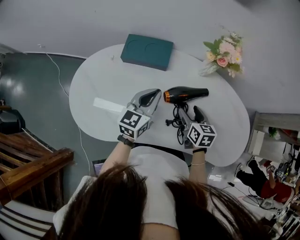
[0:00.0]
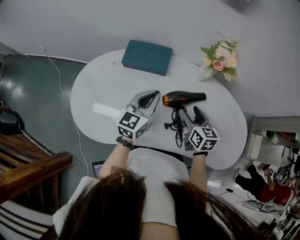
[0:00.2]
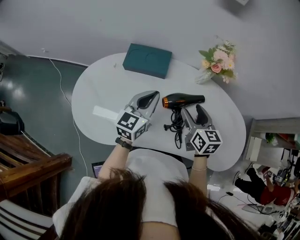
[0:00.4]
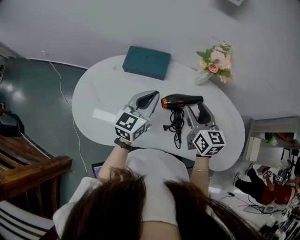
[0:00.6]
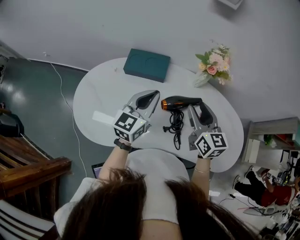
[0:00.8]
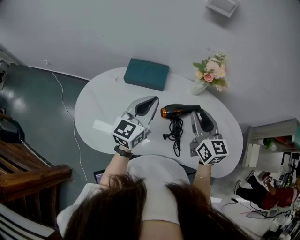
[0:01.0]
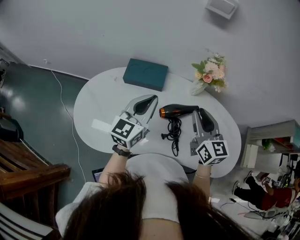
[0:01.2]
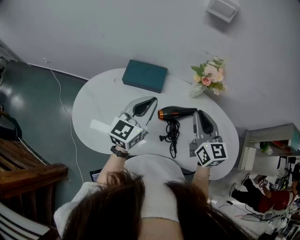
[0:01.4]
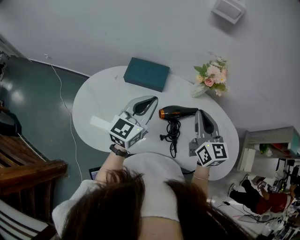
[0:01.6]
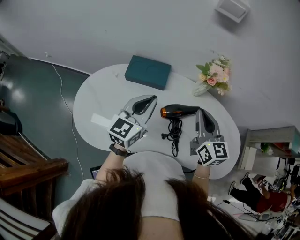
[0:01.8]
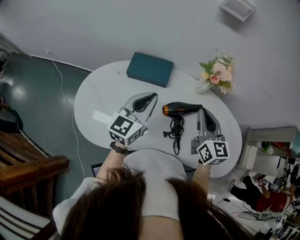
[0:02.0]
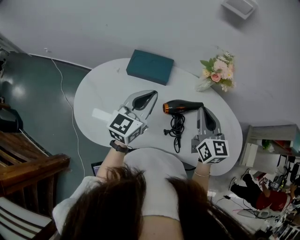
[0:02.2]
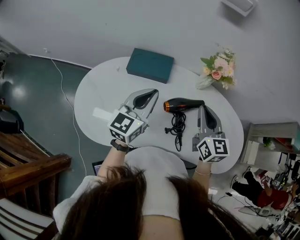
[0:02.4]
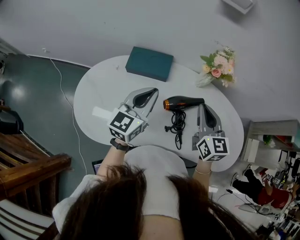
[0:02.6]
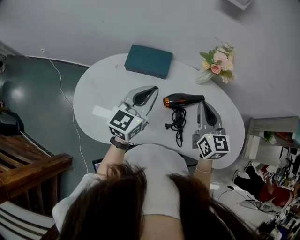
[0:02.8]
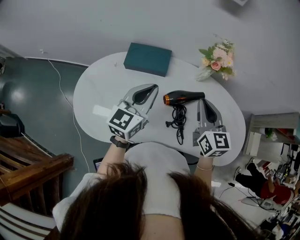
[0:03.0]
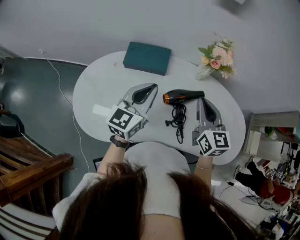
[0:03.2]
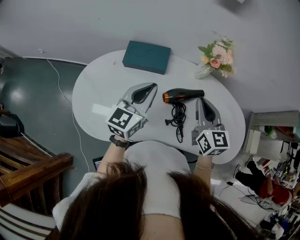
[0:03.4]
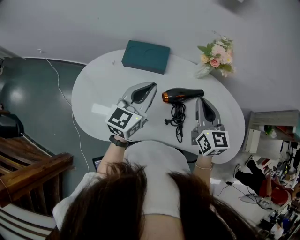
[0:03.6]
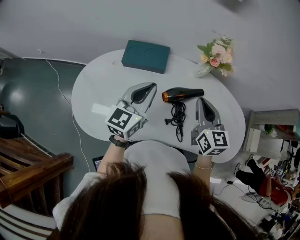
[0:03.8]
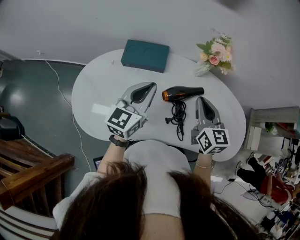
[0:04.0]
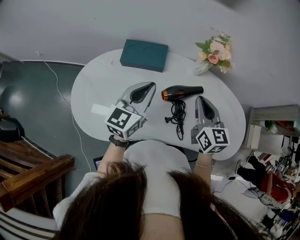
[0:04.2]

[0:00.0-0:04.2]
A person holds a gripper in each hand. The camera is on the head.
0:00.0 to 0:01.4: The right gripper moves upward, some 20 cm, rotates about 30 degrees, and closes. The left gripper travels upward by roughly 15 cm.
0:01.4 to 0:04.2: There are only small adjustments of the grippers.

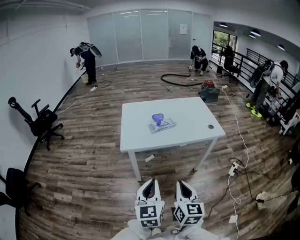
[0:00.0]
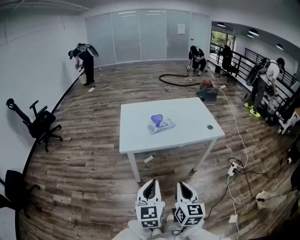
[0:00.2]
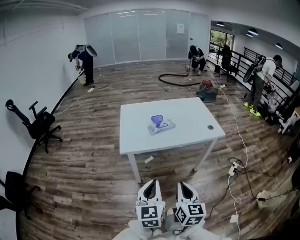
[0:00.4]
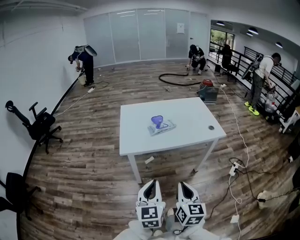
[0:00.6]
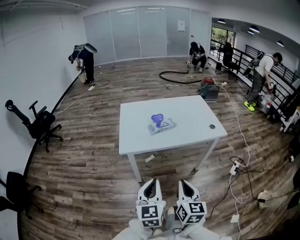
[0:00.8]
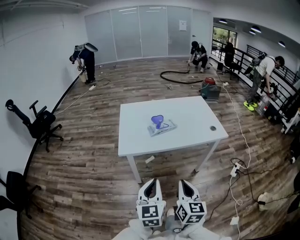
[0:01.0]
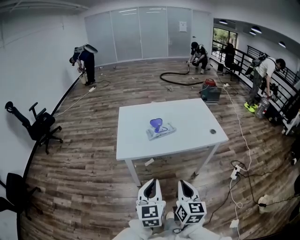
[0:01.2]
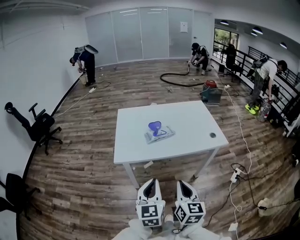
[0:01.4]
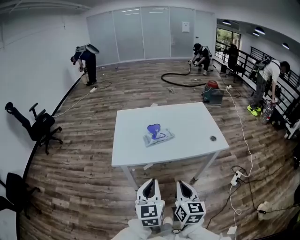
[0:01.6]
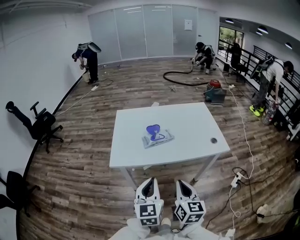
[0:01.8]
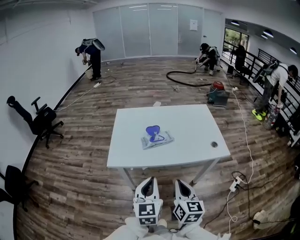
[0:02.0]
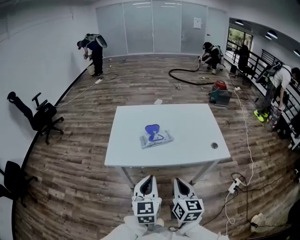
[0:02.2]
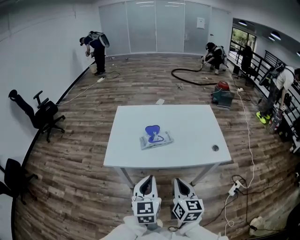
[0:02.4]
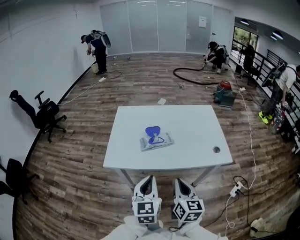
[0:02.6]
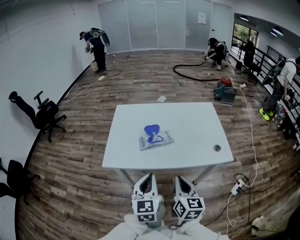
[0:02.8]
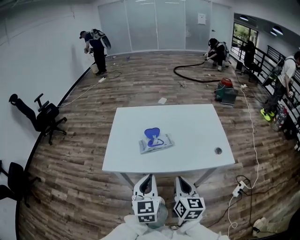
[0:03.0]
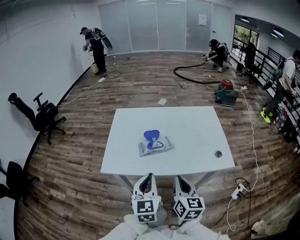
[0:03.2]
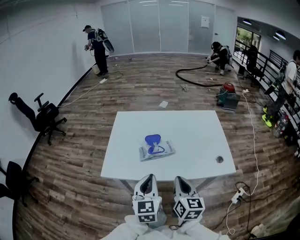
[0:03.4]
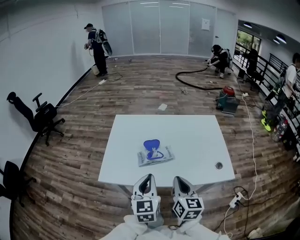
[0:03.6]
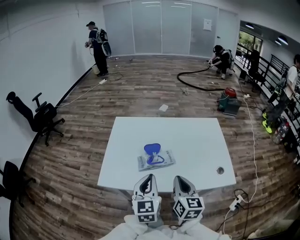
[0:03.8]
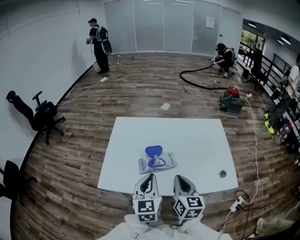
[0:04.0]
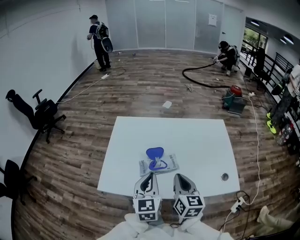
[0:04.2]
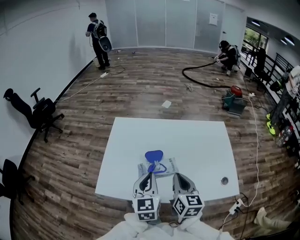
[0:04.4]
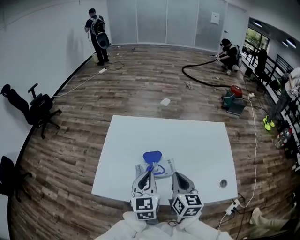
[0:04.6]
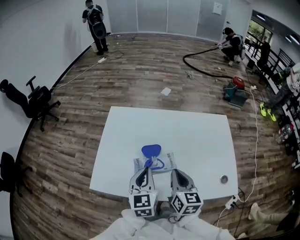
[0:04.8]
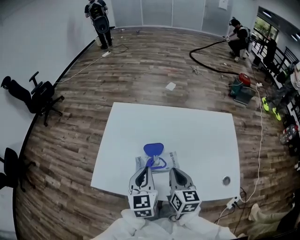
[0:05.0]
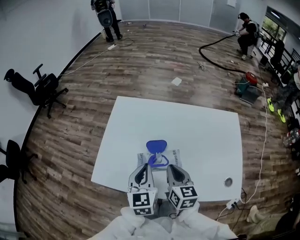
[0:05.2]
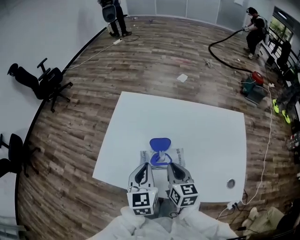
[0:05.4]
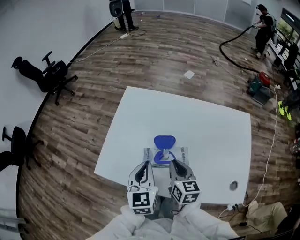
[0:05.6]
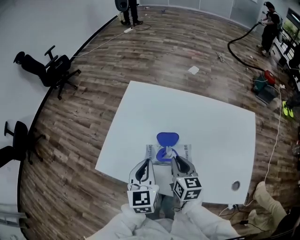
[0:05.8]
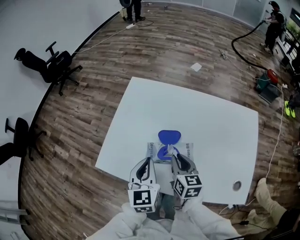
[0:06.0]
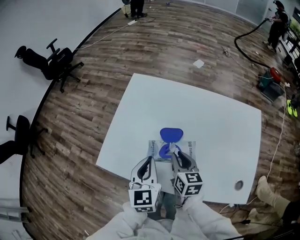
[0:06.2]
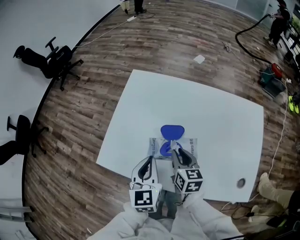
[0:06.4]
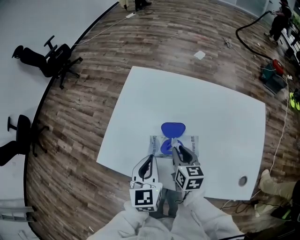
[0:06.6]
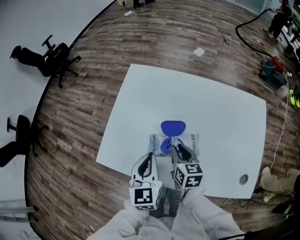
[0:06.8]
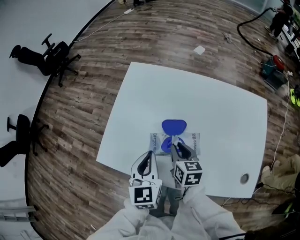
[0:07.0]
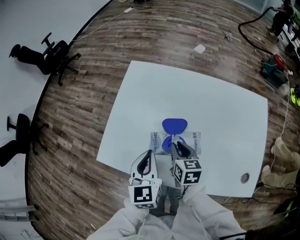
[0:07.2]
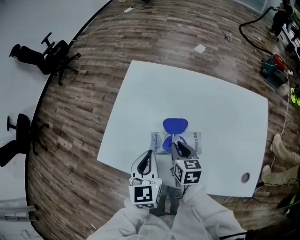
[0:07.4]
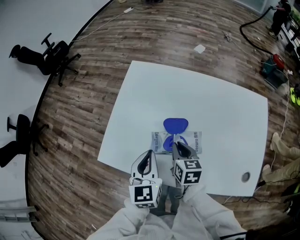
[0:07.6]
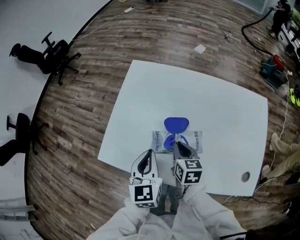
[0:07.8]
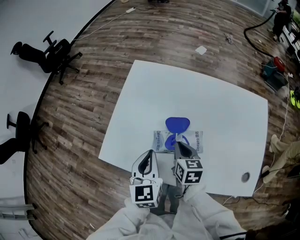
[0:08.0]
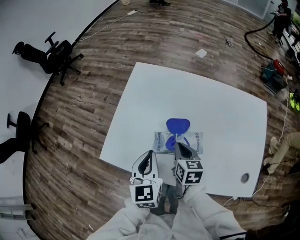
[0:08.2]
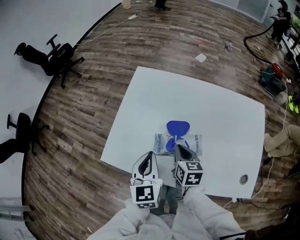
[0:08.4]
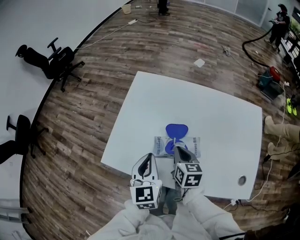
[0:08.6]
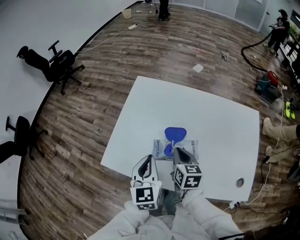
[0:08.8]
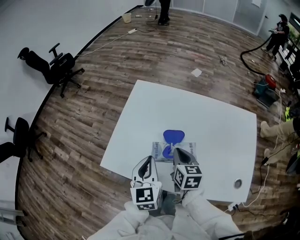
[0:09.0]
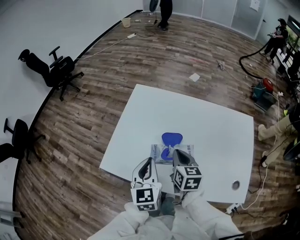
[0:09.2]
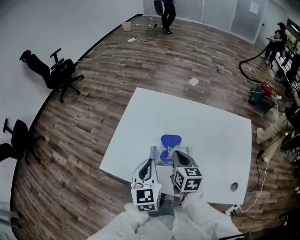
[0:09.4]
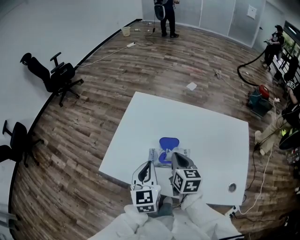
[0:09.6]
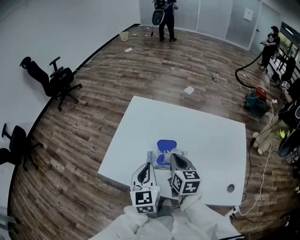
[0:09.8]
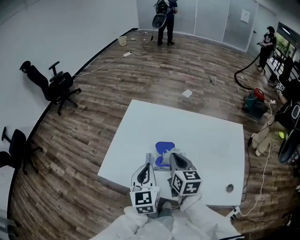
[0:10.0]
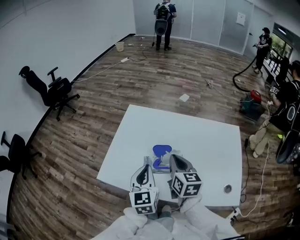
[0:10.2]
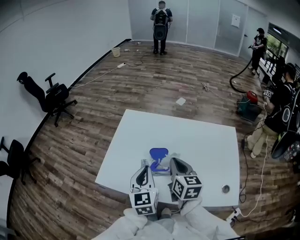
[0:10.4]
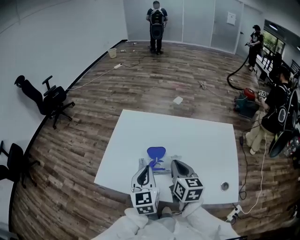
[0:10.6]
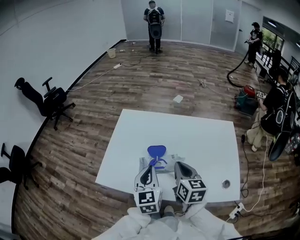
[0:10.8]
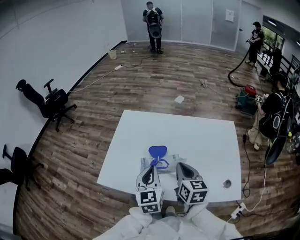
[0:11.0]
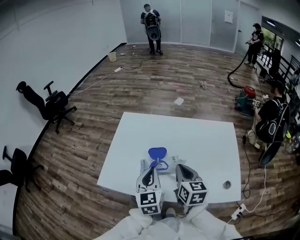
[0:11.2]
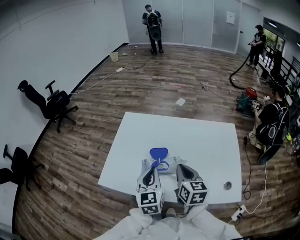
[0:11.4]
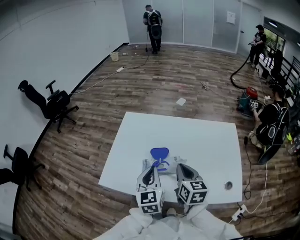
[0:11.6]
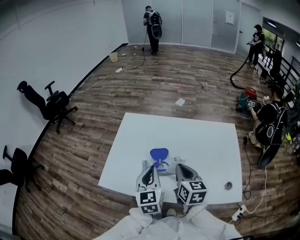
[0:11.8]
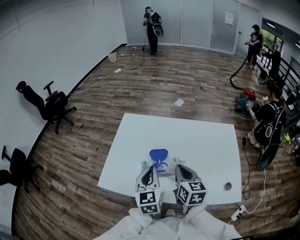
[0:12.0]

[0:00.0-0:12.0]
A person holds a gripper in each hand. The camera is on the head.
0:00.0 to 0:01.6: Both grippers travel together forward, roughly 15 cm.
0:01.6 to 0:03.0: Both grippers travel together forward and to the right, approximately 15 cm.
0:03.0 to 0:04.4: Both grippers move forward, approximately 20 cm.
0:04.4 to 0:06.0: The left gripper goes roughly 5 cm downward; the right gripper moves downward and forward, approximately 15 cm, and turns by approximately 20 degrees.
0:06.0 to 0:07.6: The right gripper ends up about 5 cm from where it was.
0:07.6 to 0:09.0: The right gripper travels upward by some 5 cm.
0:09.0 to 0:10.4: The left gripper shifts by roughly 5 cm. The right gripper goes about 10 cm upward.
0:10.4 to 0:12.0: The grippers stay close to where they were, moving slightly.

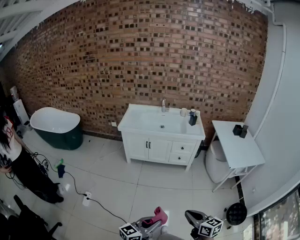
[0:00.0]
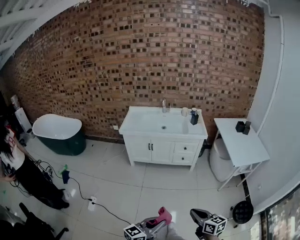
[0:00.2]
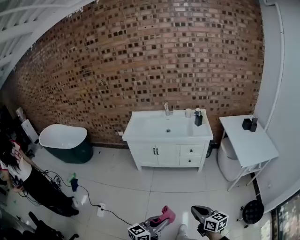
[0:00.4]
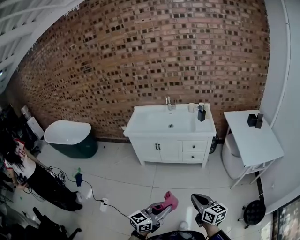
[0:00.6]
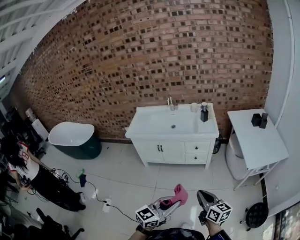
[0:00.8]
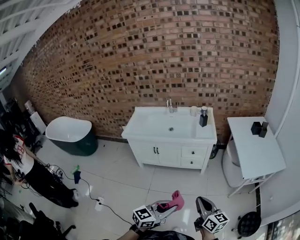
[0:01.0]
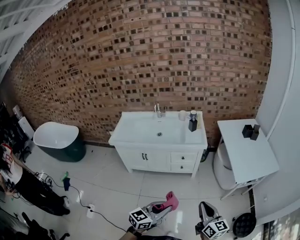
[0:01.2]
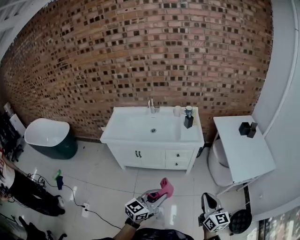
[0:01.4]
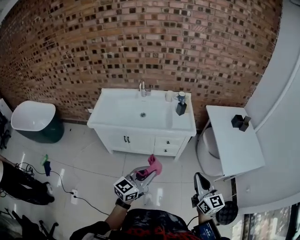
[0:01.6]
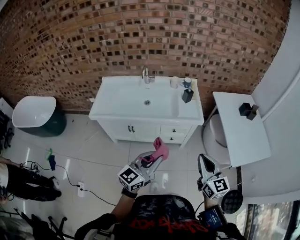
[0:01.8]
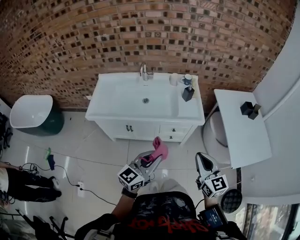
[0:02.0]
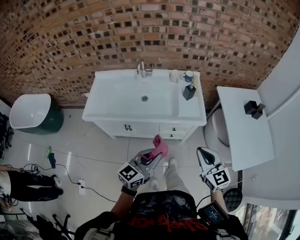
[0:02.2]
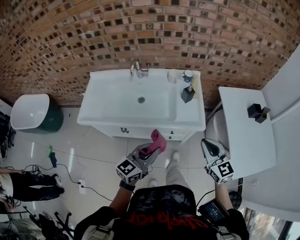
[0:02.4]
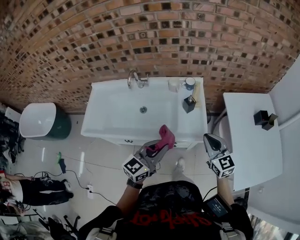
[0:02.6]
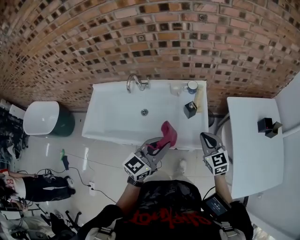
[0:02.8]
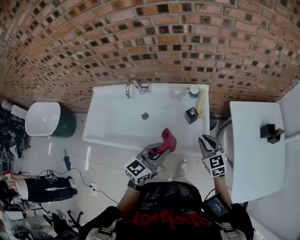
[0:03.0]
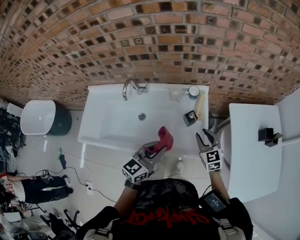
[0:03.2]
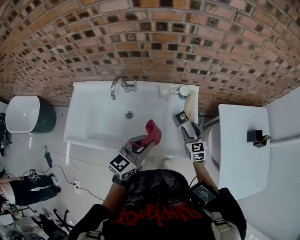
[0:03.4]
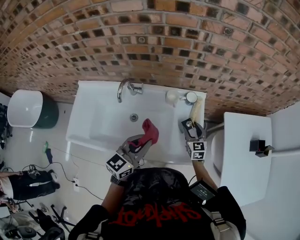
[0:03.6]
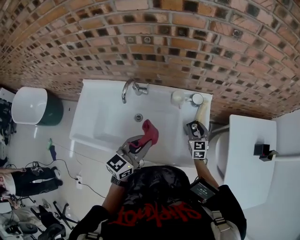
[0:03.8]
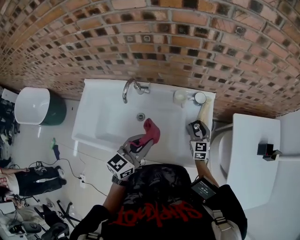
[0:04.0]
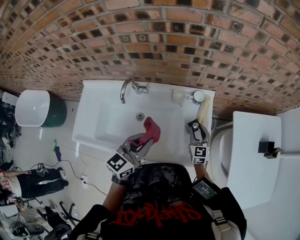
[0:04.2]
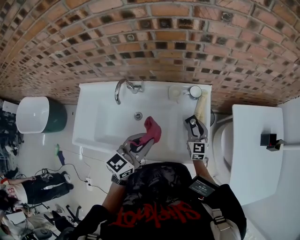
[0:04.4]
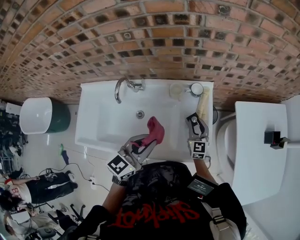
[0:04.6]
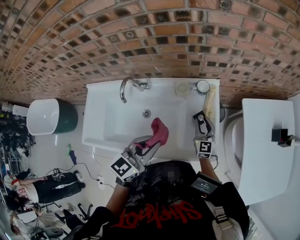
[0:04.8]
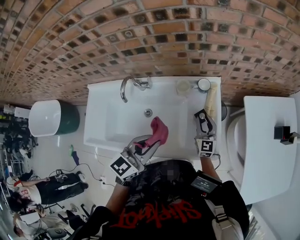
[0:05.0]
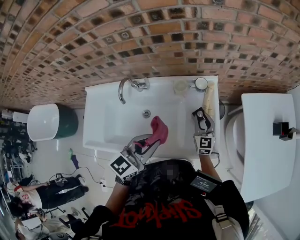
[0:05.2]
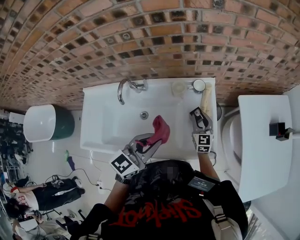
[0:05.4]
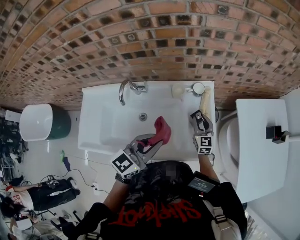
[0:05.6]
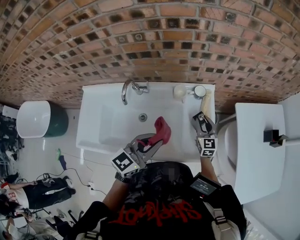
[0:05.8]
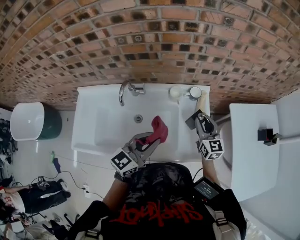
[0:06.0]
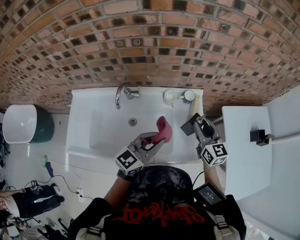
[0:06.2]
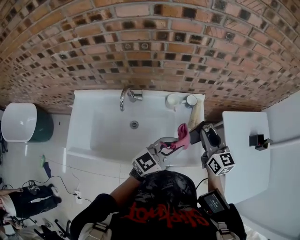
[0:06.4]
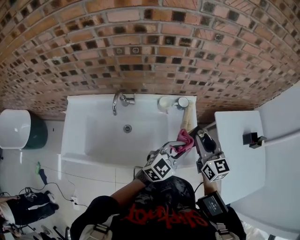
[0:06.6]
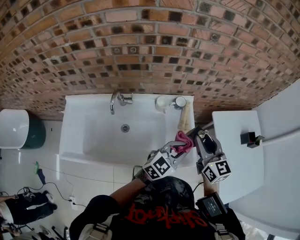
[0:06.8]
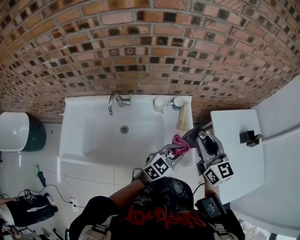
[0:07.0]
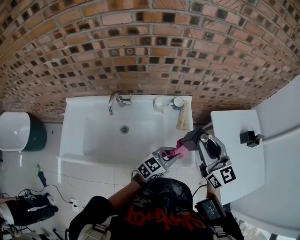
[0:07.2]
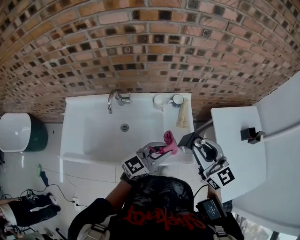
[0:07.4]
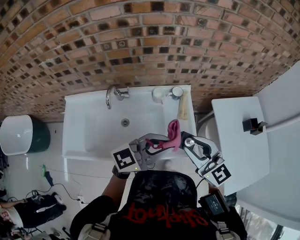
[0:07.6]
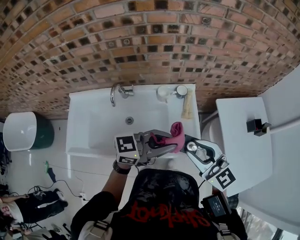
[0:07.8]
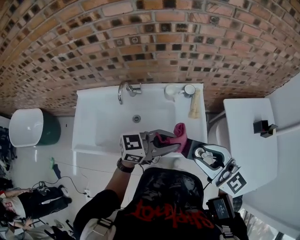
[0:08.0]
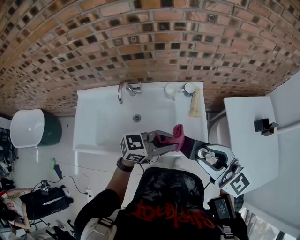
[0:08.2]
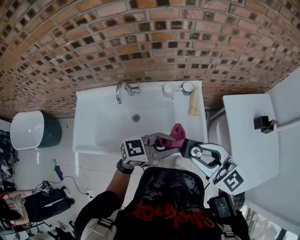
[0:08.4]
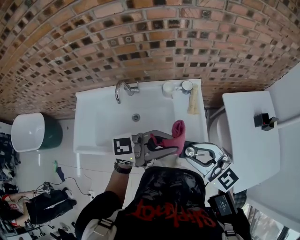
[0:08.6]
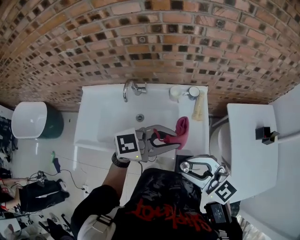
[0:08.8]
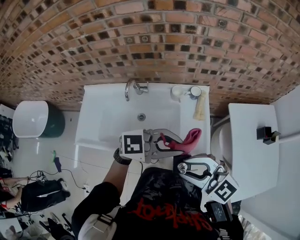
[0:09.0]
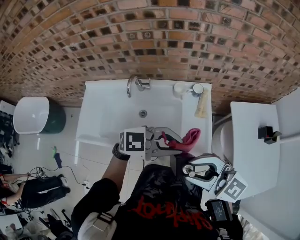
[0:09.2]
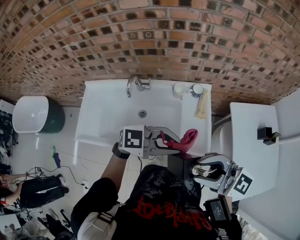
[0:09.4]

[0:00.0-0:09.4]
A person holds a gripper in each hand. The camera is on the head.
0:00.0 to 0:01.6: The pair of grippers is taken forward, roughly 50 cm. The right gripper rotates about 30 degrees.
0:01.6 to 0:03.2: The two grippers travel together, forward, approximately 60 cm. The right gripper changes its angle by roughly 30 degrees, and opens.
0:03.2 to 0:04.8: The right gripper moves downward, forward and to the left, some 15 cm, changes its angle by about 20 degrees, and opens, then closes again. Meanwhile the left gripper is displaced forward and to the left by some 10 cm.
0:04.8 to 0:06.2: The right gripper is displaced upward by roughly 20 cm.
0:06.2 to 0:07.8: The left gripper shifts by approximately 15 cm, and turns by some 30 degrees, while the right gripper shifts by roughly 20 cm, and rotates roughly 20 degrees.
0:07.8 to 0:09.4: The left gripper reaches some 5 cm downward, then returns, and turns by about 20 degrees; the right gripper goes up and down, roughly 10 cm each way, reversing 2 times, and turns by about 30 degrees.
